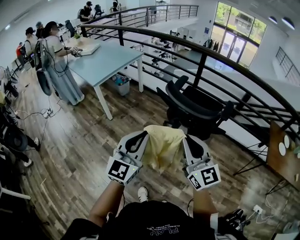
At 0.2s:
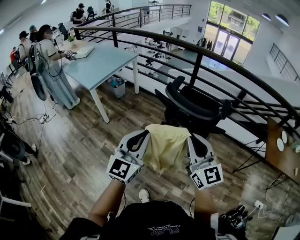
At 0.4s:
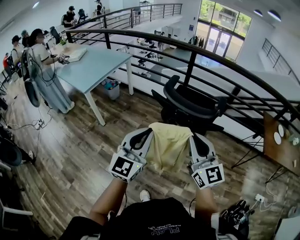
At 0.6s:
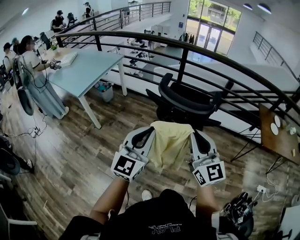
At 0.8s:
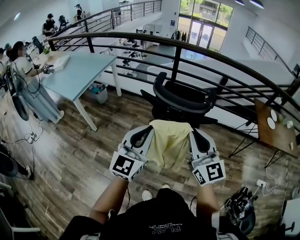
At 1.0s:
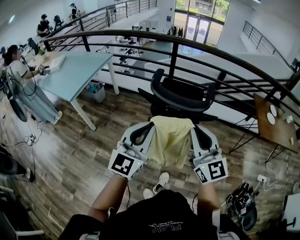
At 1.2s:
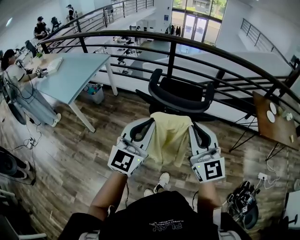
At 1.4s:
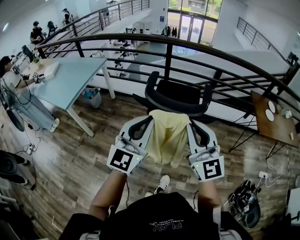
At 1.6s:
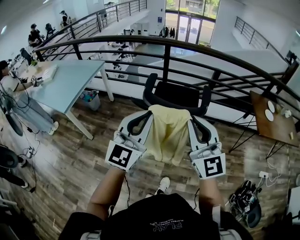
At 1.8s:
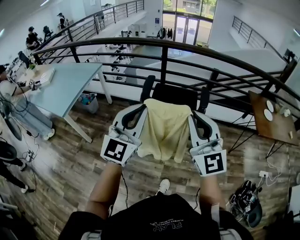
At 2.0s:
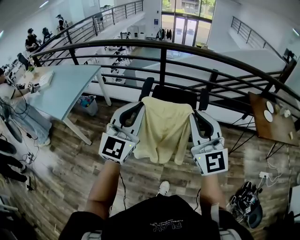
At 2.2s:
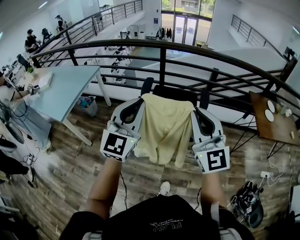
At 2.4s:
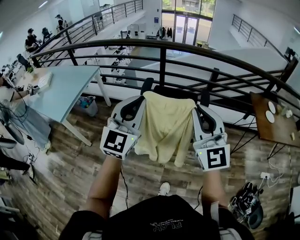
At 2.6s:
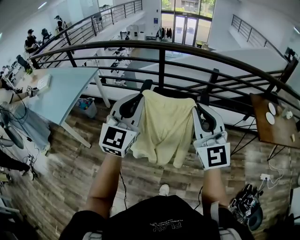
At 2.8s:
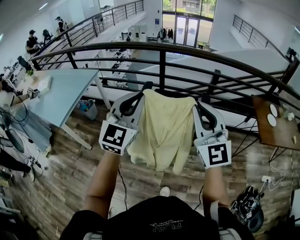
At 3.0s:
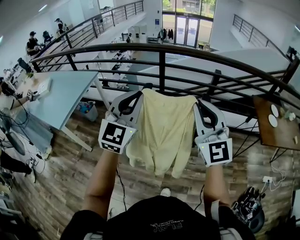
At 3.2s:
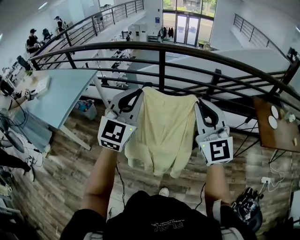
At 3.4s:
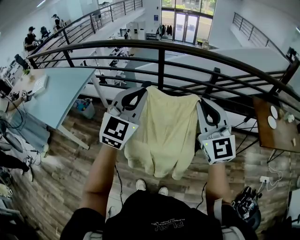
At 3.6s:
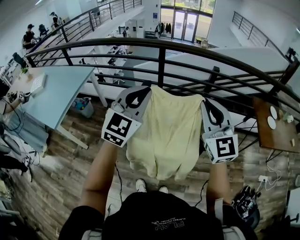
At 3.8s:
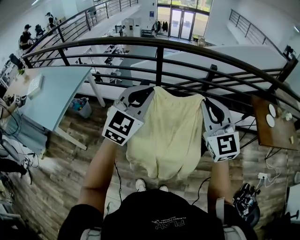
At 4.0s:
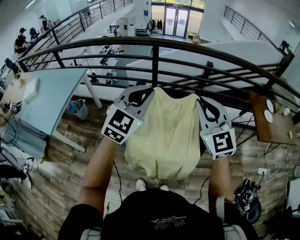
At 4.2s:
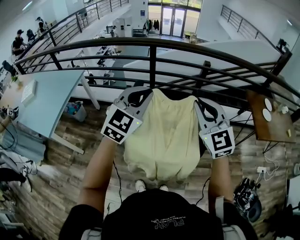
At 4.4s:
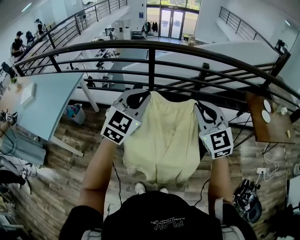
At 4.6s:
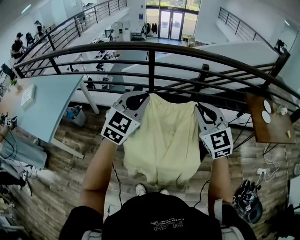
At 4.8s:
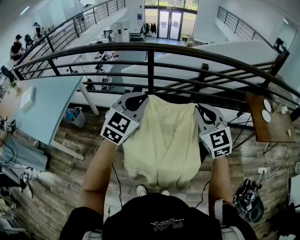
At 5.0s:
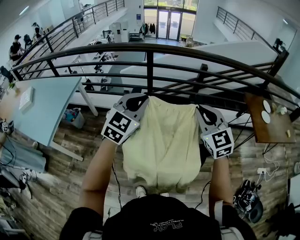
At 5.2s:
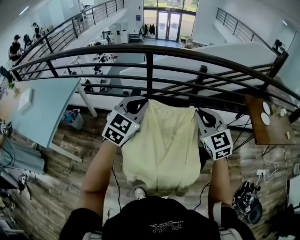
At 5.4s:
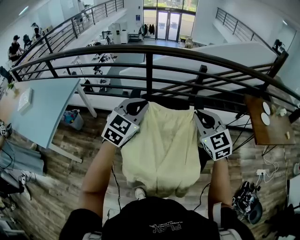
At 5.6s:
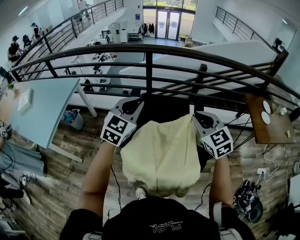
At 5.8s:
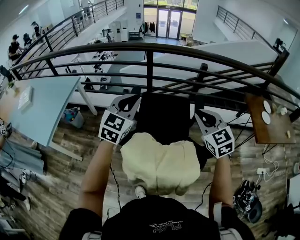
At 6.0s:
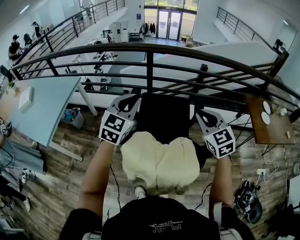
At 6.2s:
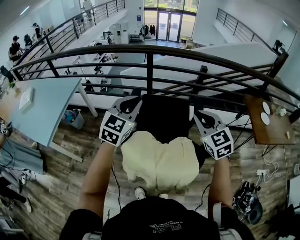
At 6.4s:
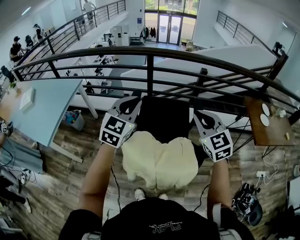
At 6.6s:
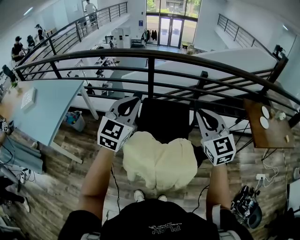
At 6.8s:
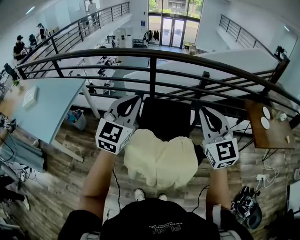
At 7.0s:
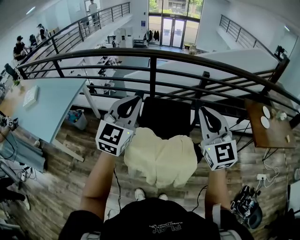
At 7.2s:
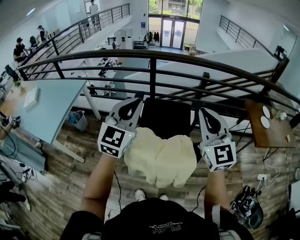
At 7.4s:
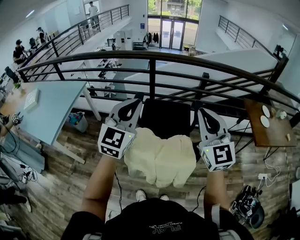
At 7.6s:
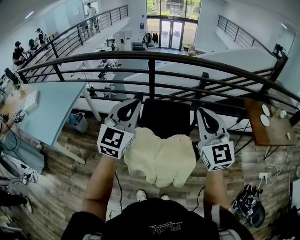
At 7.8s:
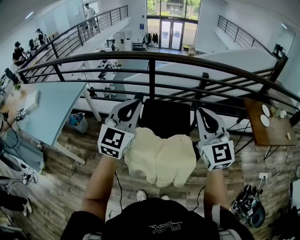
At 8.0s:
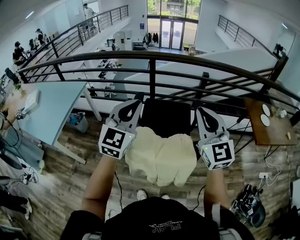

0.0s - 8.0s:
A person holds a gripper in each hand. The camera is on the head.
0.0s - 1.6s: The grippers both shift forward and upward by approximately 15 cm. The right gripper changes its angle by about 30 degrees. Meanwhile the left gripper rotates about 20 degrees.
1.6s - 3.2s: Both grippers travel together forward, approximately 20 cm.
3.2s - 4.8s: Both grippers move forward and downward, roughly 15 cm. The right gripper rotates some 20 degrees.
6.4s - 8.0s: The left gripper goes about 10 cm backward and upward, while the right gripper heads upward and backward, covering roughly 10 cm, and changes its angle by about 20 degrees.

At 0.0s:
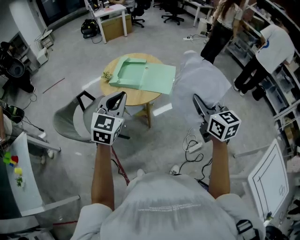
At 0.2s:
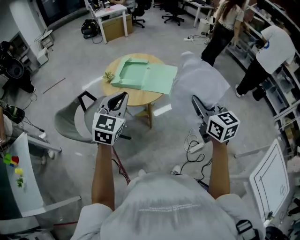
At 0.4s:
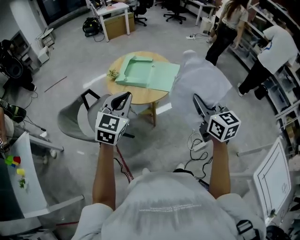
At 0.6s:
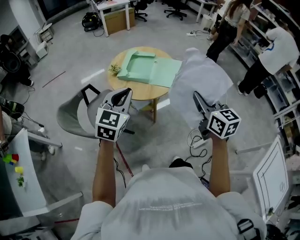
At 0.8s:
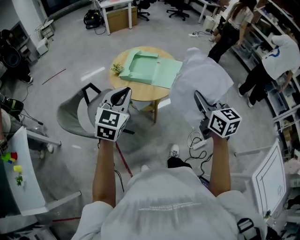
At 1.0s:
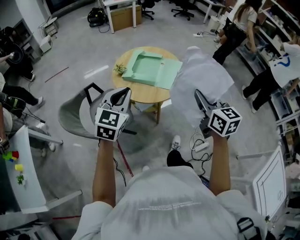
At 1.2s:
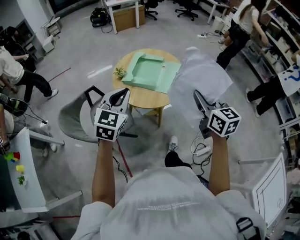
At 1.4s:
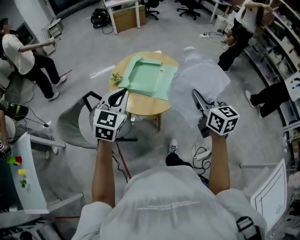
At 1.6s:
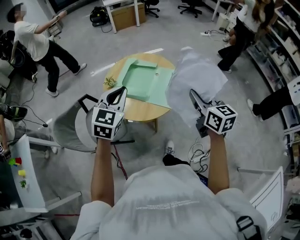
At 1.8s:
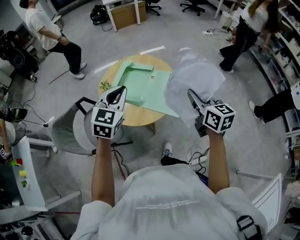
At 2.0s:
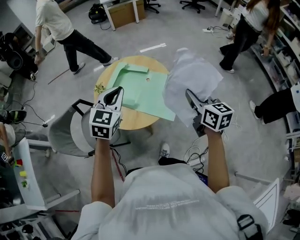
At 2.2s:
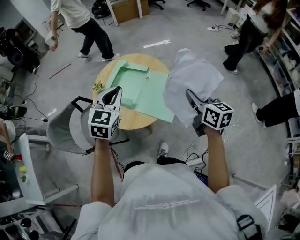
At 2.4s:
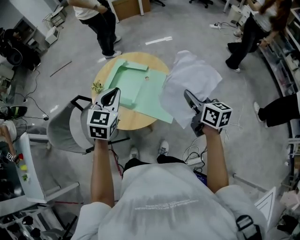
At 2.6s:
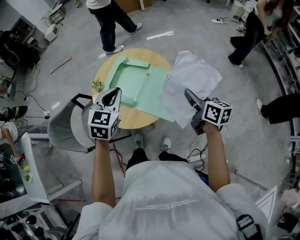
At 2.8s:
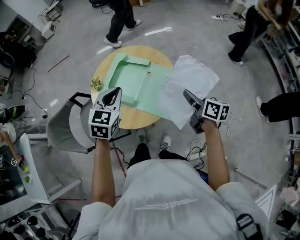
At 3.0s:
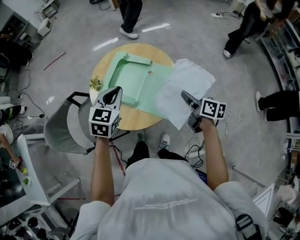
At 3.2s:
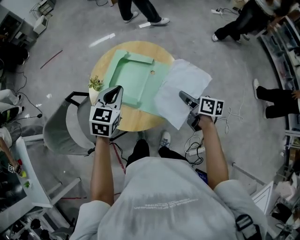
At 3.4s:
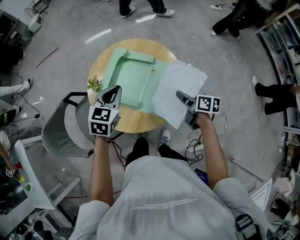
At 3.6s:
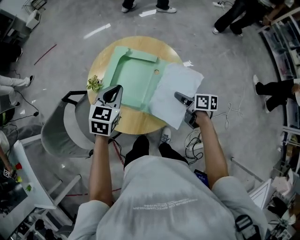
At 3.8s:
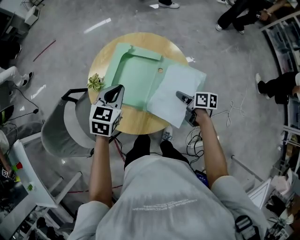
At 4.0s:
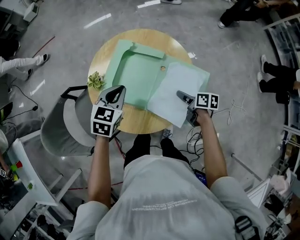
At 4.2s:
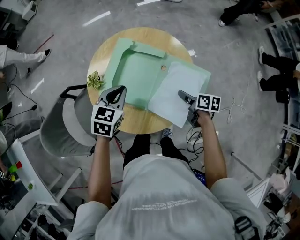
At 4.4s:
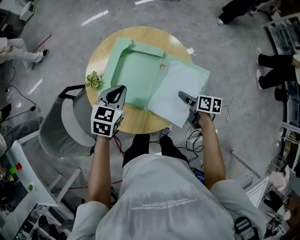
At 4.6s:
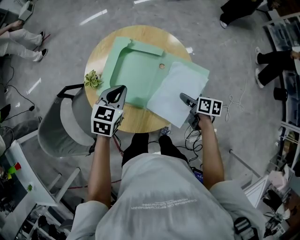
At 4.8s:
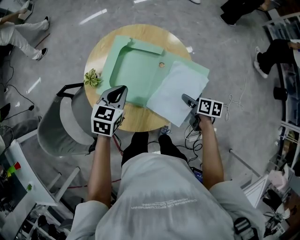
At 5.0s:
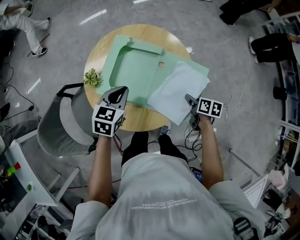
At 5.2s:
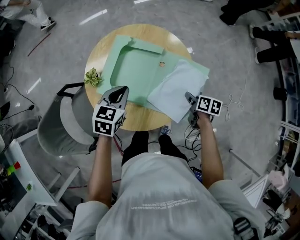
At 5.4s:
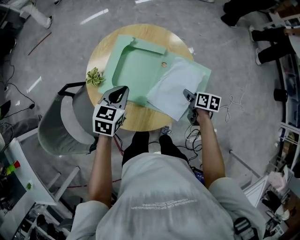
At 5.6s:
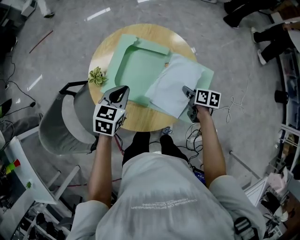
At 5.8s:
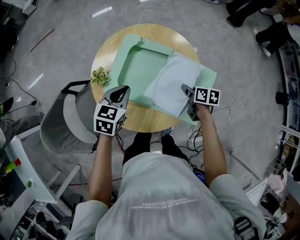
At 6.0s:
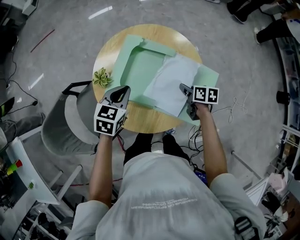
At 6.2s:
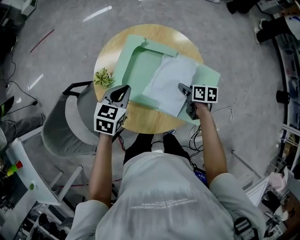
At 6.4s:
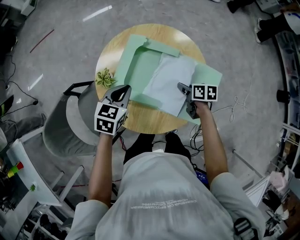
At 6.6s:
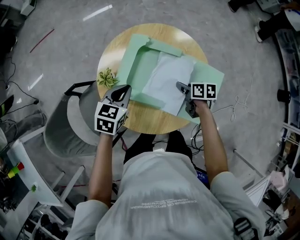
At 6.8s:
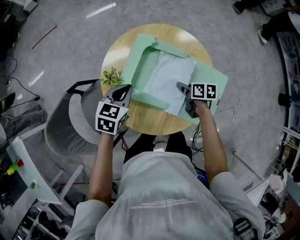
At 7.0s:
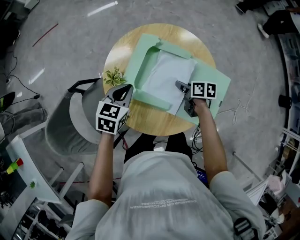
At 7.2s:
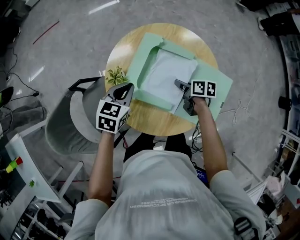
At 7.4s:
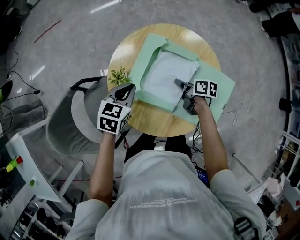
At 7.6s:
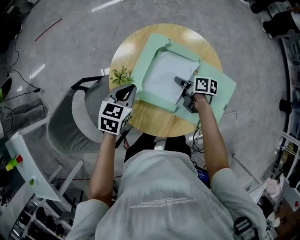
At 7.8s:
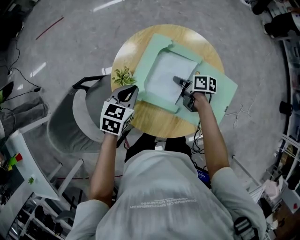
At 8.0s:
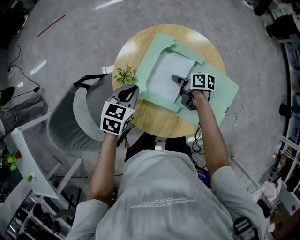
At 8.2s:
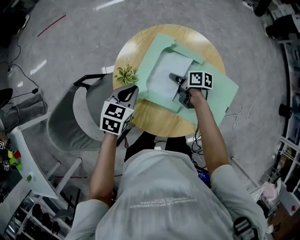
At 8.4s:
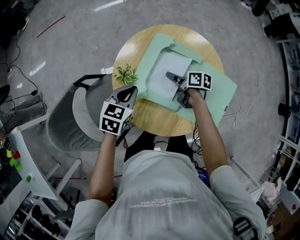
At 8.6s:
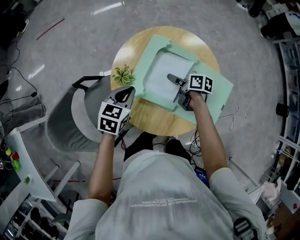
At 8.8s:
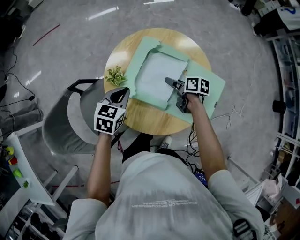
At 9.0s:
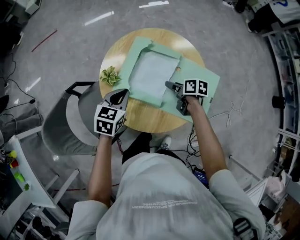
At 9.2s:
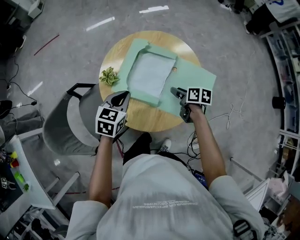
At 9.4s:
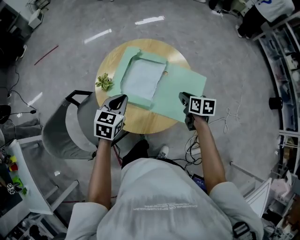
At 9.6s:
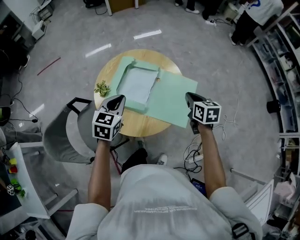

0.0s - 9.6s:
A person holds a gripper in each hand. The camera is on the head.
0.0s - 1.6s: Both grippers move forward, about 25 cm.
1.6s - 3.2s: The right gripper goes some 30 cm downward and forward, and swivels about 40 degrees. Meanwhile the left gripper moves forward and downward, some 20 cm.
3.2s - 4.8s: Both grippers travel together downward, some 15 cm. The right gripper swivels about 20 degrees, and opens its fingers.
4.8s - 6.4s: The right gripper travels to the left and forward by about 15 cm, and closes. Meanwhile the left gripper goes approximately 5 cm to the left.
6.4s - 8.0s: The left gripper goes about 5 cm to the left. The right gripper shifts roughly 15 cm to the left and forward.
8.0s - 9.6s: The left gripper shifts about 20 cm upward, to the right and backward. The right gripper is displaced to the right, upward and backward by approximately 35 cm, changes its angle by approximately 50 degrees, and opens and closes again.

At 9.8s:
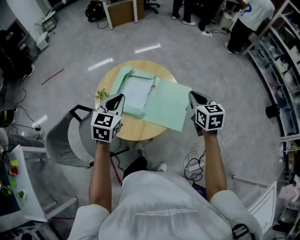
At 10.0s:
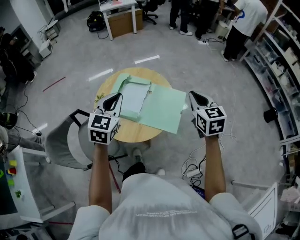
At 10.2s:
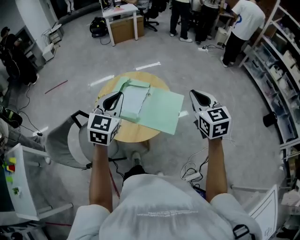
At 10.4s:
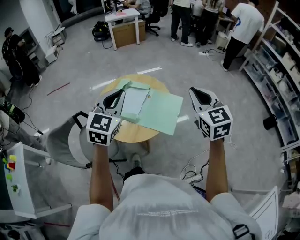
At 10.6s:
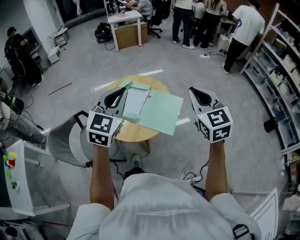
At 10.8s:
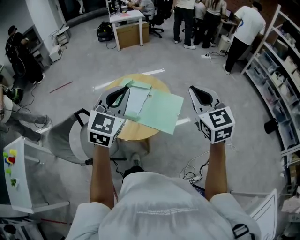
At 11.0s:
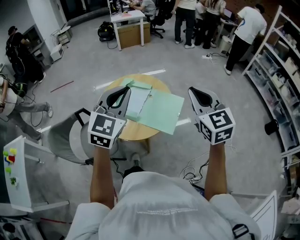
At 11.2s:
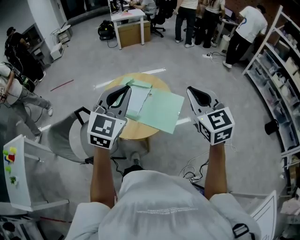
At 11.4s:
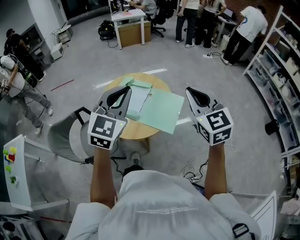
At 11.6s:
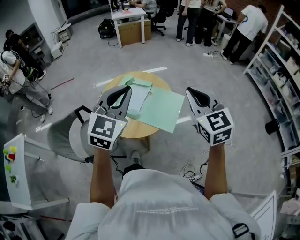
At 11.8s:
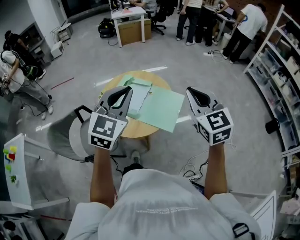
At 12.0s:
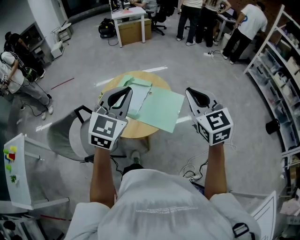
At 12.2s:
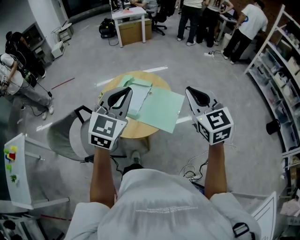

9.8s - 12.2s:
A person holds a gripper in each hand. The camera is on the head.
9.8s - 11.0s: The left gripper heads upward, backward and to the right, covering about 25 cm, and changes its angle by some 20 degrees. Meanwhile the right gripper heads upward and backward, covering about 25 cm, and changes its angle by roughly 30 degrees.
11.0s - 12.2s: The grippers stay close to where they were, moving slightly.

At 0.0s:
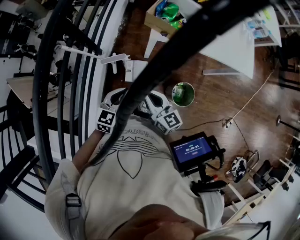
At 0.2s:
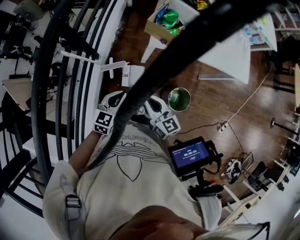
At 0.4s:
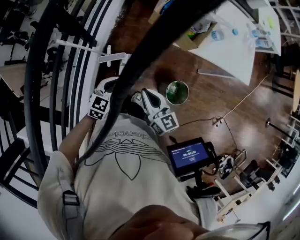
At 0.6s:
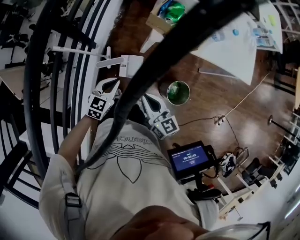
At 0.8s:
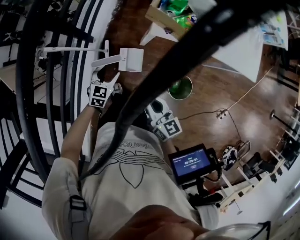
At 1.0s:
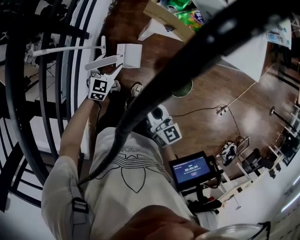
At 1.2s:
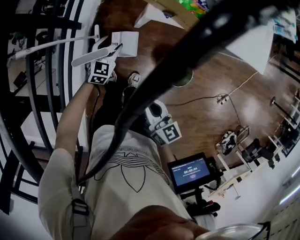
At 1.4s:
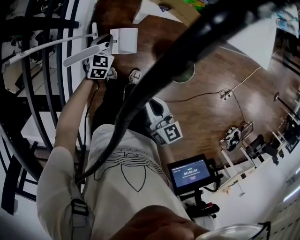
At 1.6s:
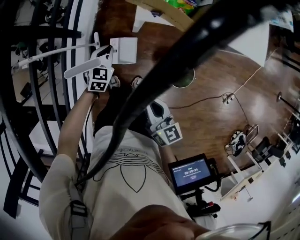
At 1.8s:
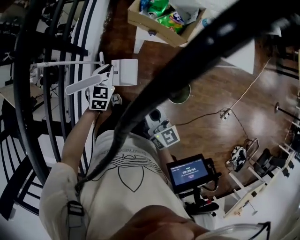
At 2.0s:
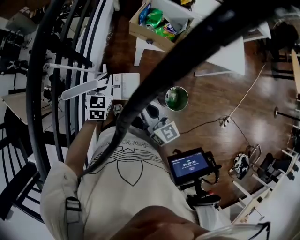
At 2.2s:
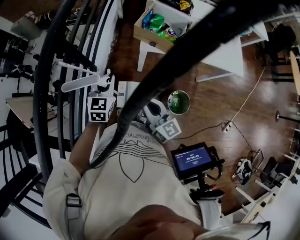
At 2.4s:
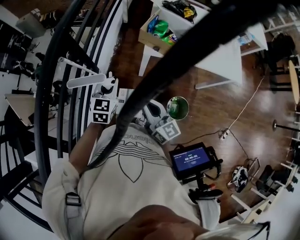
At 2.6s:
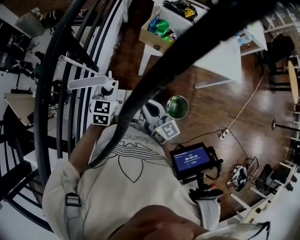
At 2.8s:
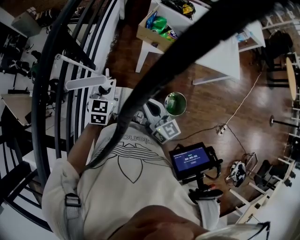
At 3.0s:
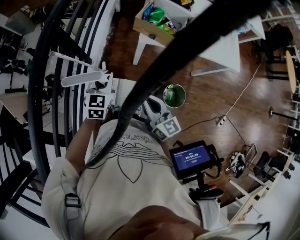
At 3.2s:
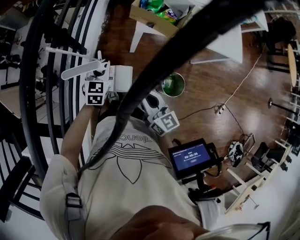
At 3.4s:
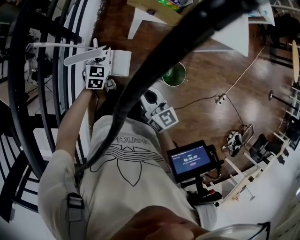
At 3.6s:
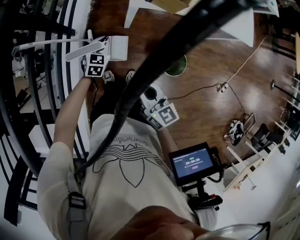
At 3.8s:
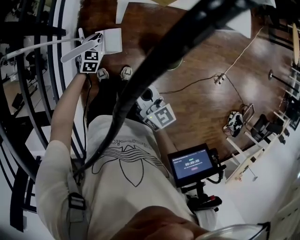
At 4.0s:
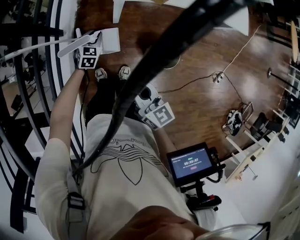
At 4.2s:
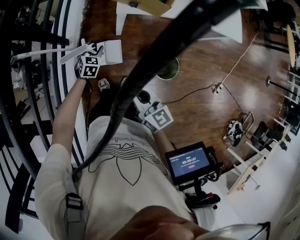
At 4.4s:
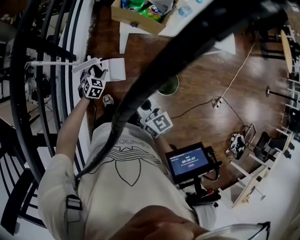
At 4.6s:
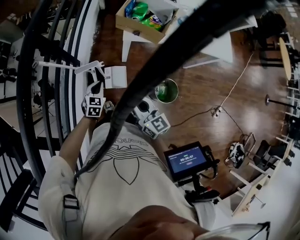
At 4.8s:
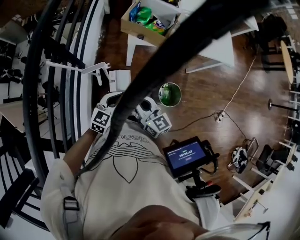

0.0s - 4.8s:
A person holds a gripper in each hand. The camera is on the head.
0.0s - 1.6s: The right gripper heads downward, covering roughly 10 cm. The left gripper travels downward and forward by some 25 cm, swivels some 20 degrees, and opens, then closes again.
1.6s - 3.2s: The left gripper shifts some 15 cm upward; the right gripper shifts some 10 cm upward.
3.2s - 4.8s: The left gripper goes roughly 15 cm backward and to the right, goes downward and returns, roughly 20 cm each way, rotates about 30 degrees, and opens, then closes once more.
